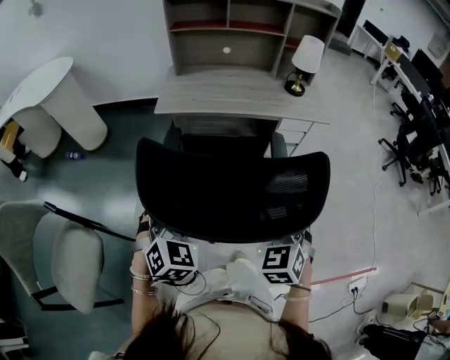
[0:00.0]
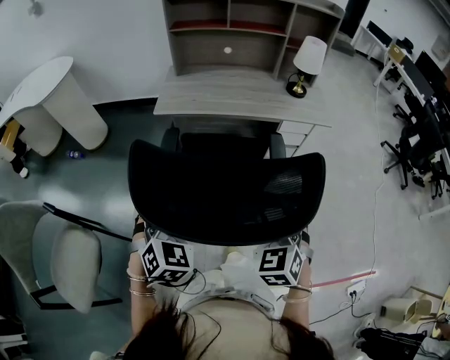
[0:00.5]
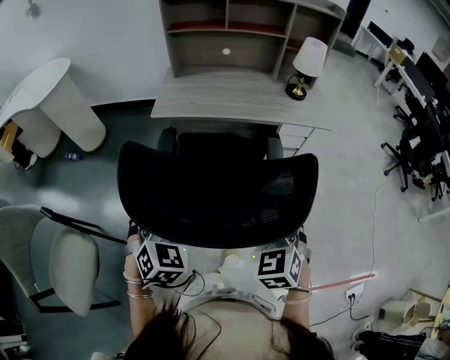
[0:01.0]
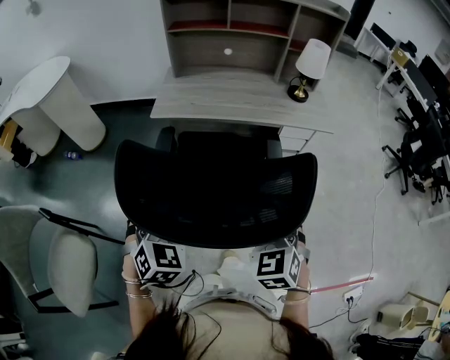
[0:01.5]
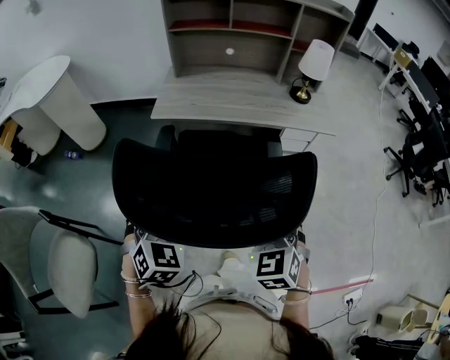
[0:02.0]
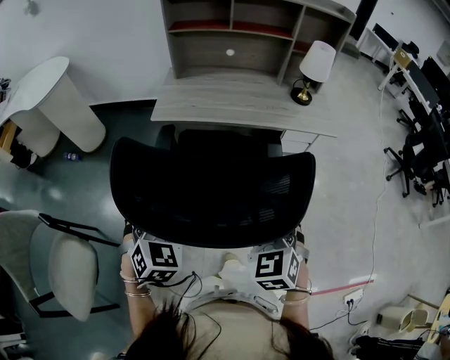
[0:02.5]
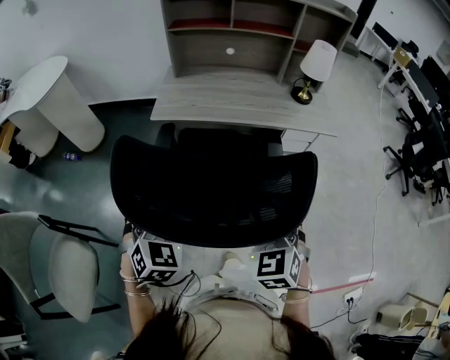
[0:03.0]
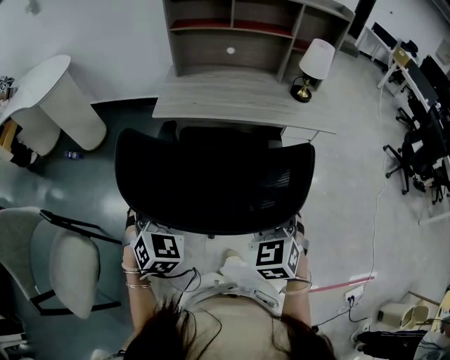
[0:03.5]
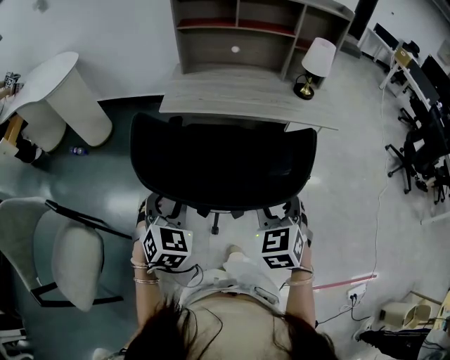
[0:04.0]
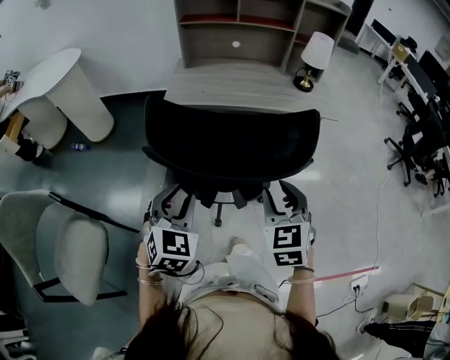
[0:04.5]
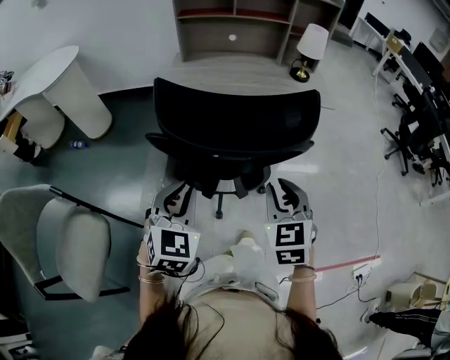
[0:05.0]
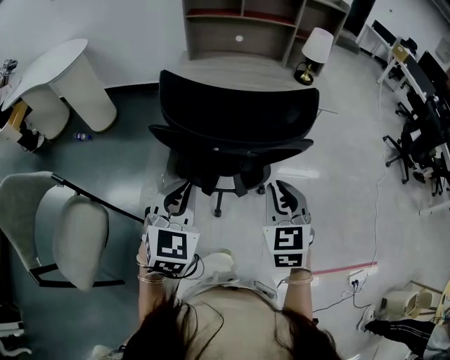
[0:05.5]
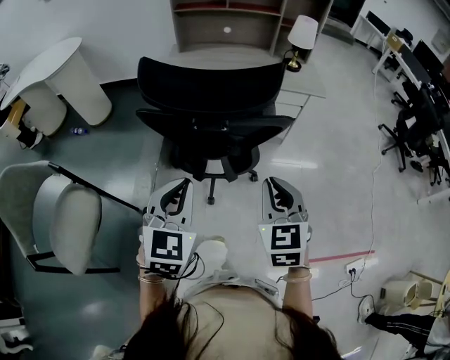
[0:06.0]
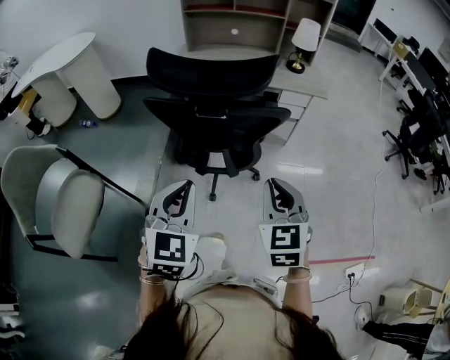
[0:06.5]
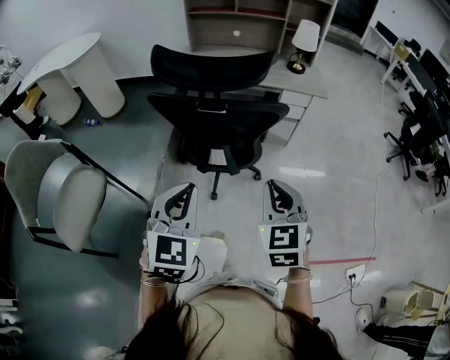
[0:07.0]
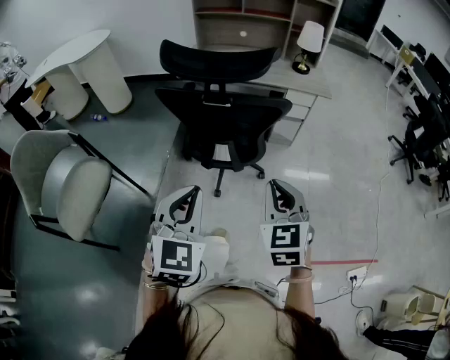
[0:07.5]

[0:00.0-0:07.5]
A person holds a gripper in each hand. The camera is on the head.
0:00.0 to 0:02.0: The two grippers go about 5 cm forward.
0:02.0 to 0:04.0: There are only small adjustments of the grippers.
0:04.0 to 0:05.5: Both grippers travel together backward, about 10 cm. The left gripper closes up. Meanwhile the right gripper closes its fingers.
0:05.5 to 0:07.5: The left gripper is displaced backward and to the right by some 20 cm. The right gripper shifts approximately 15 cm backward.

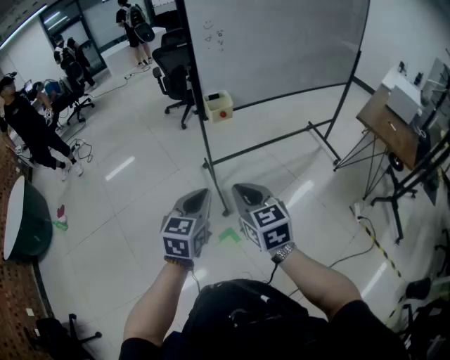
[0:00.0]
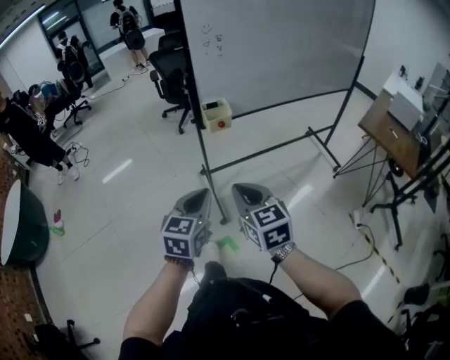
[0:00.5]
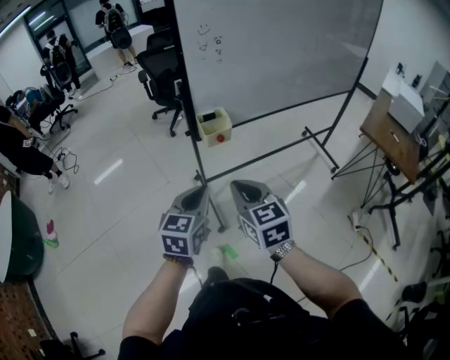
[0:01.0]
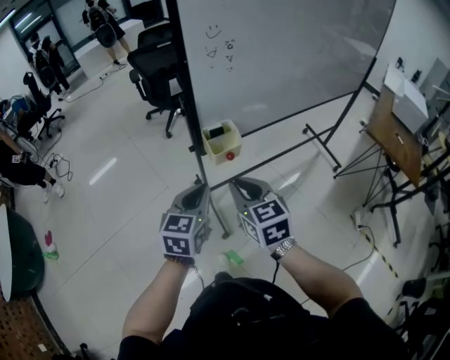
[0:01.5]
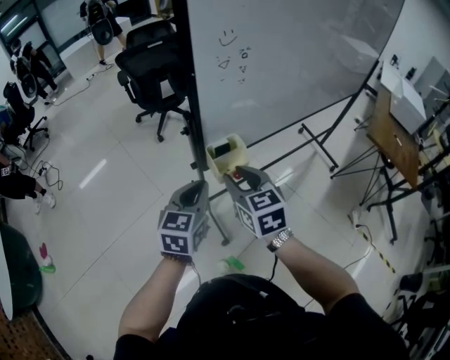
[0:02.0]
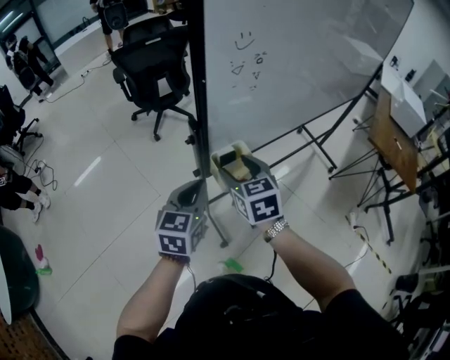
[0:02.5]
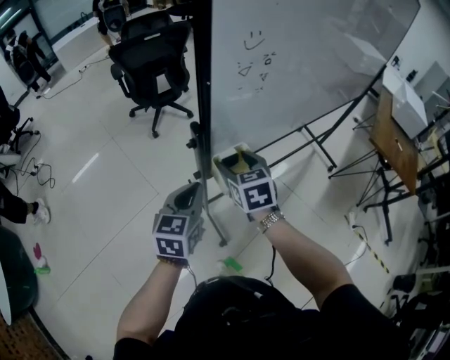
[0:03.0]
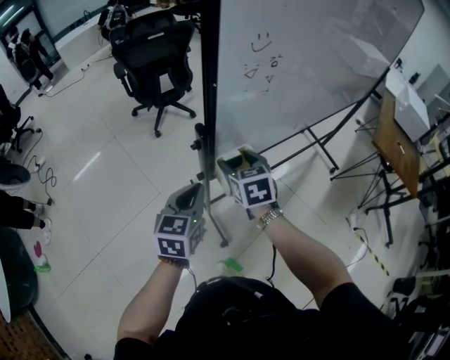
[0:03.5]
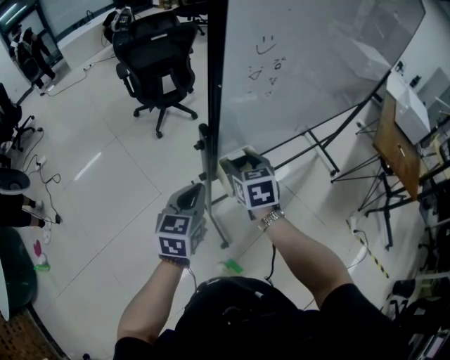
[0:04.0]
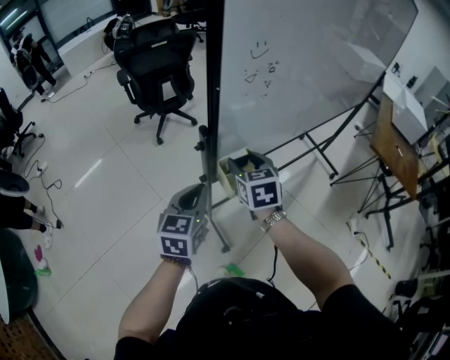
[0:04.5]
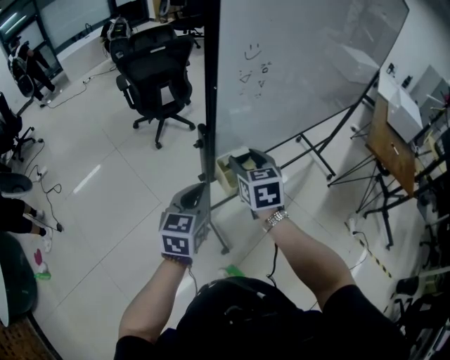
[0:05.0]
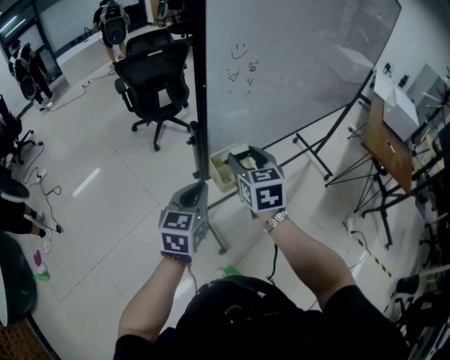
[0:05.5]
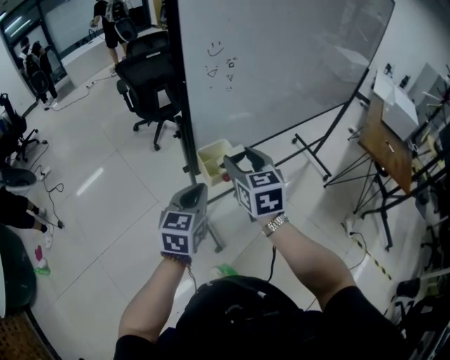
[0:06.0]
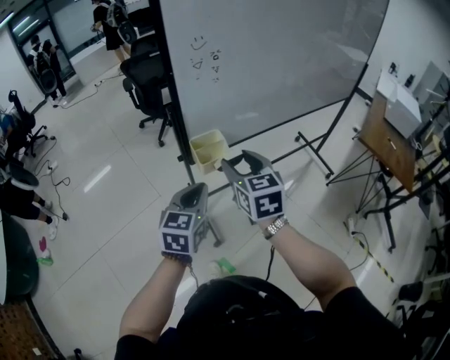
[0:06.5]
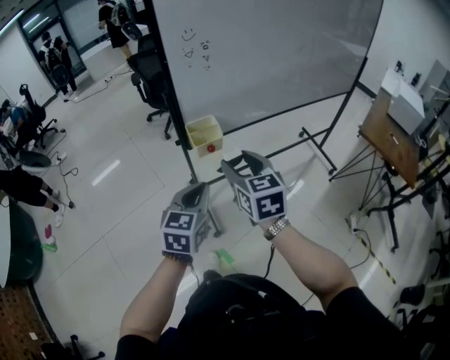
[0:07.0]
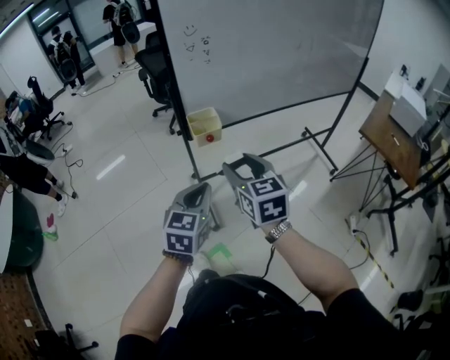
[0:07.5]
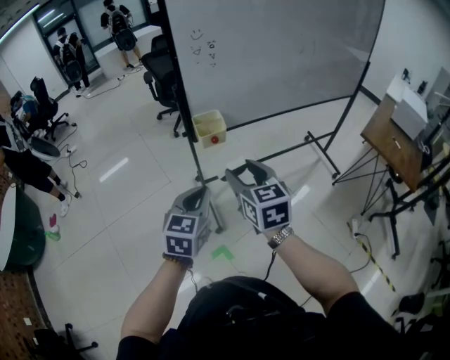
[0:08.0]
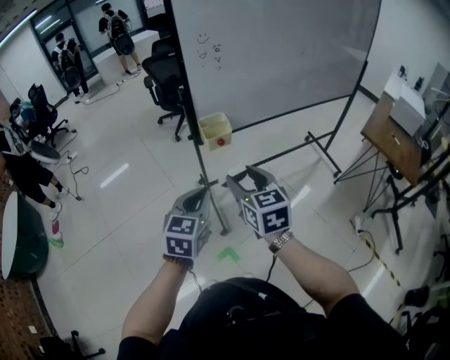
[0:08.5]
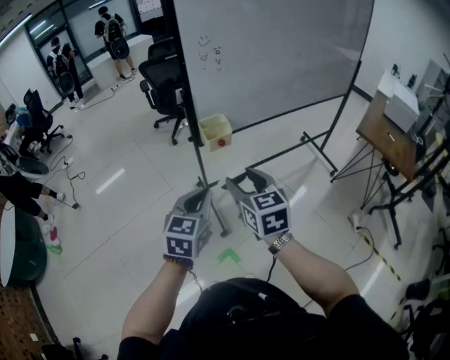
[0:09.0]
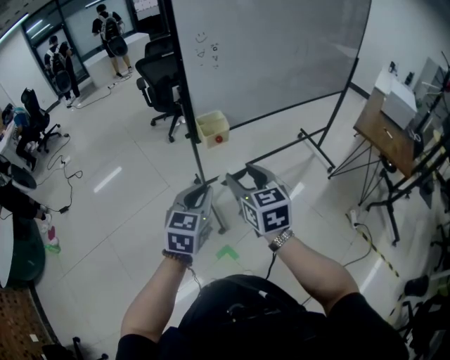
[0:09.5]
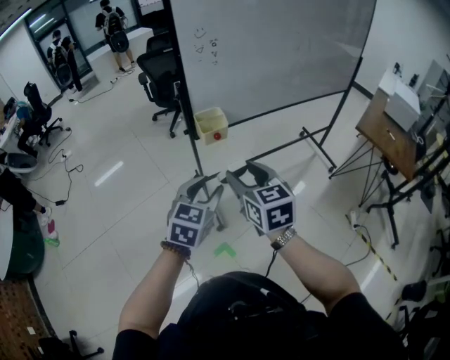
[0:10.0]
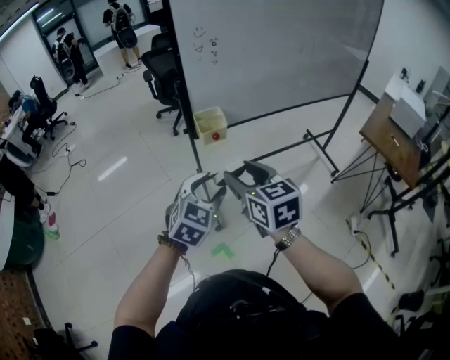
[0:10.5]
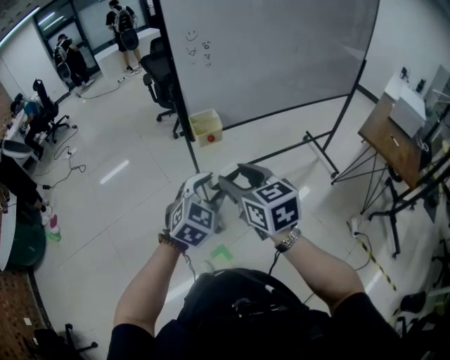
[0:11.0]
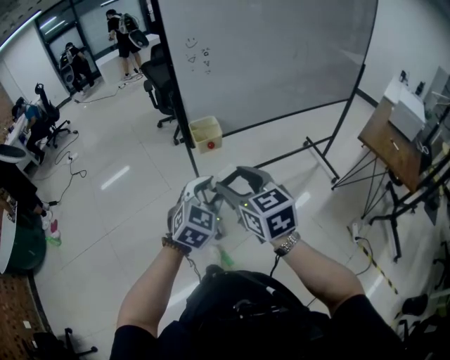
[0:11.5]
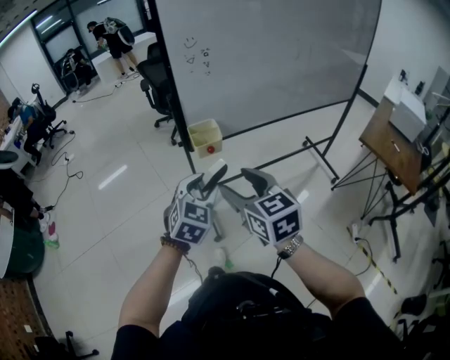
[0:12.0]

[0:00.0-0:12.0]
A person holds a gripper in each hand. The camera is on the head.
0:00.0 to 0:02.0: Both grippers travel together forward, about 40 cm. The right gripper opens.
0:02.0 to 0:04.0: The left gripper goes about 5 cm forward; the right gripper moves forward and downward, about 15 cm.
0:04.0 to 0:06.0: The left gripper shifts roughly 10 cm to the right and backward. Meanwhile the right gripper shifts roughly 15 cm upward, backward and to the right.
0:06.0 to 0:08.0: Both grippers travel together backward, approximately 20 cm.
0:08.0 to 0:10.0: The left gripper opens.
0:10.0 to 0:12.0: The left gripper goes approximately 5 cm forward.

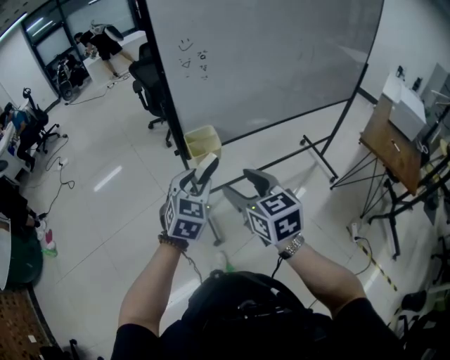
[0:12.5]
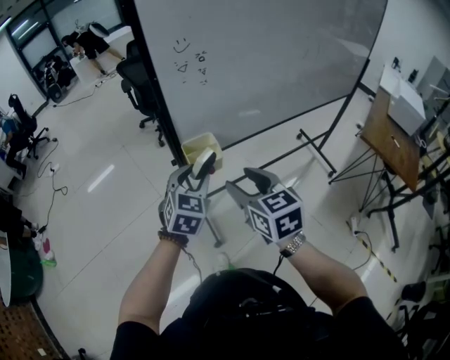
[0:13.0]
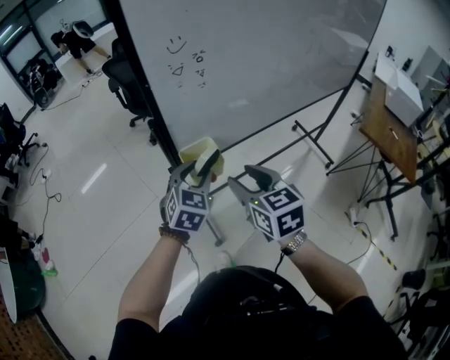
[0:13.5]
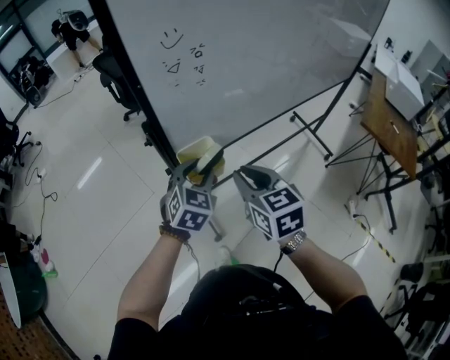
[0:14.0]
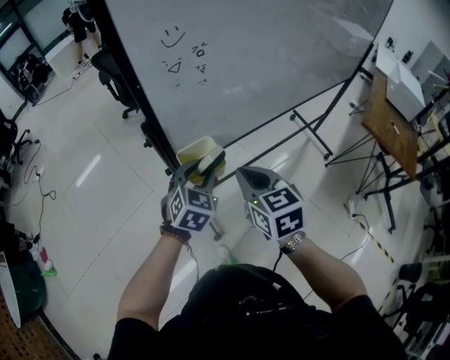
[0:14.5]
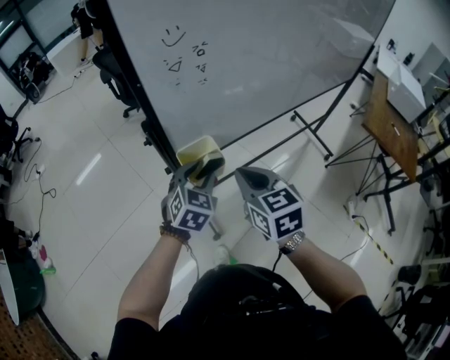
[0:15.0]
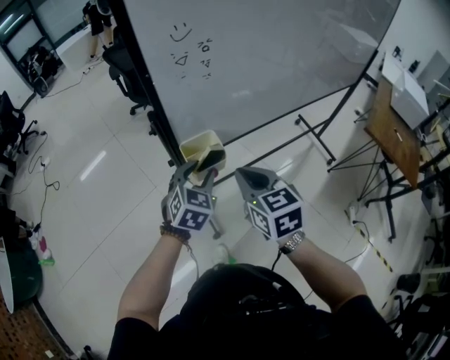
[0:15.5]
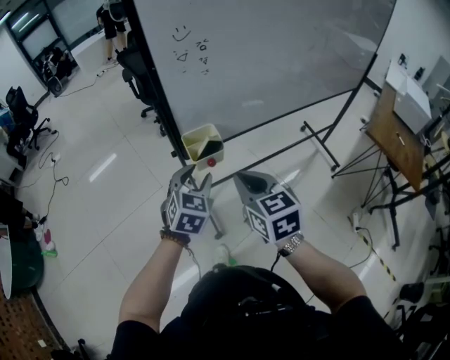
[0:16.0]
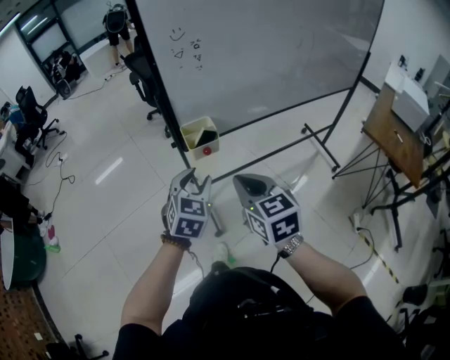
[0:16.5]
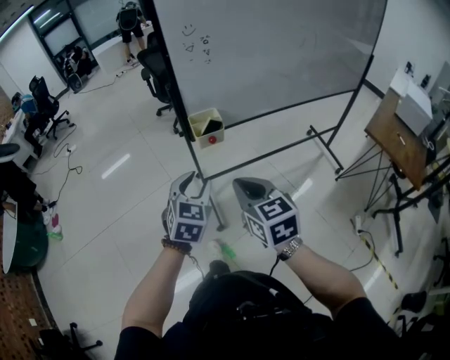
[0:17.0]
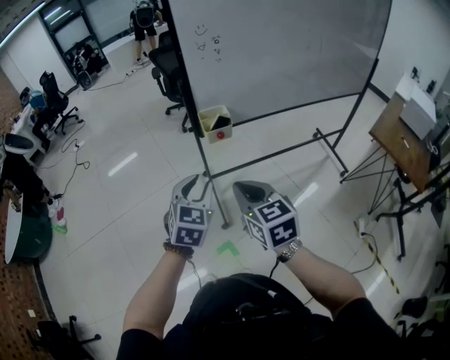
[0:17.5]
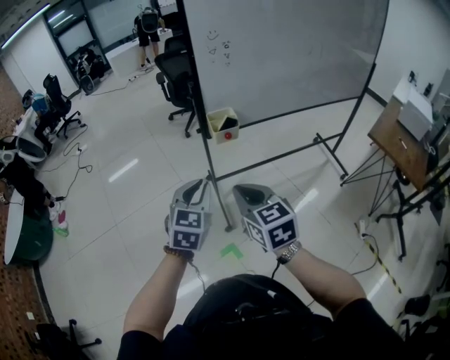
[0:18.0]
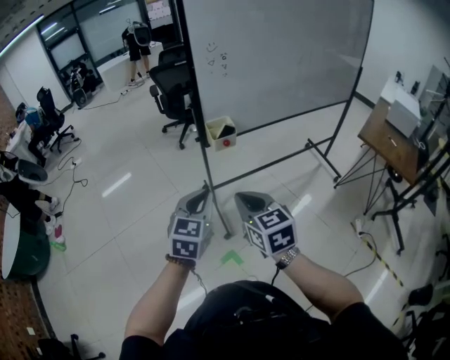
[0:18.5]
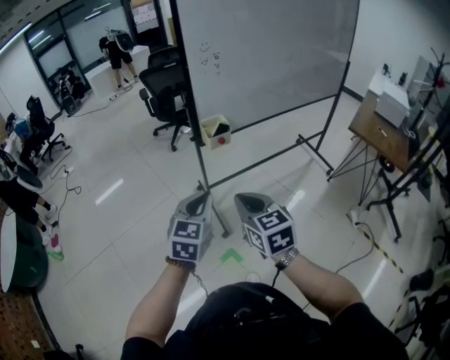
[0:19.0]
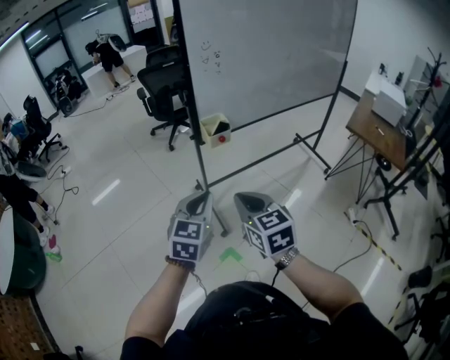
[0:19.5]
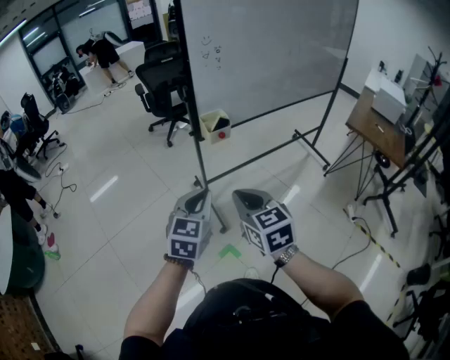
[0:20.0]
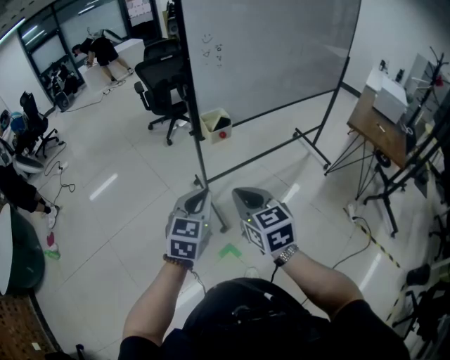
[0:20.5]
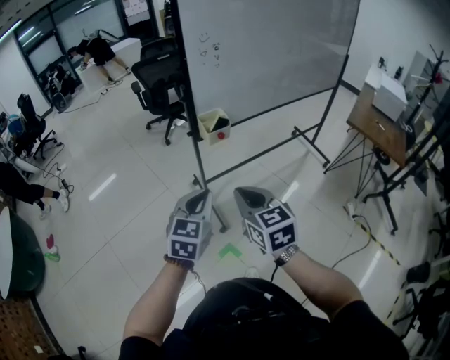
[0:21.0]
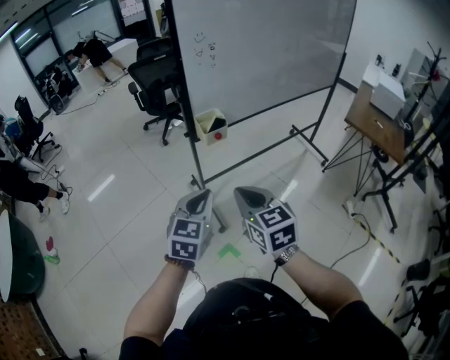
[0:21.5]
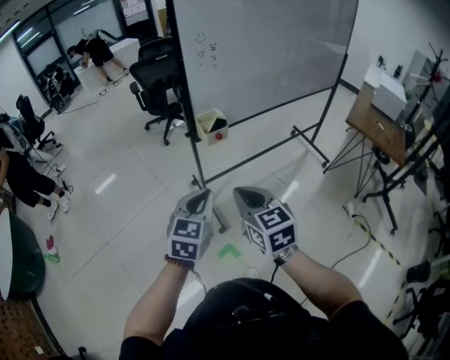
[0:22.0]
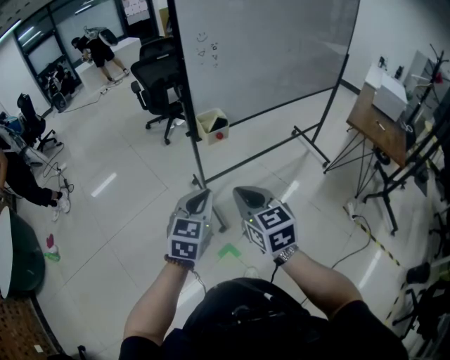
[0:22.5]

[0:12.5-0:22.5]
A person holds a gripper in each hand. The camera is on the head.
0:12.5 to 0:14.5: The left gripper is displaced forward and downward by some 20 cm; the right gripper heads forward, covering roughly 15 cm, and closes up.
0:14.5 to 0:16.5: Both grippers travel together backward, about 15 cm.
0:16.5 to 0:18.5: Both grippers travel together backward and to the left, approximately 20 cm. The left gripper closes its fingers.
0:18.5 to 0:22.5: The grippers stay close to where they were, moving slightly.
